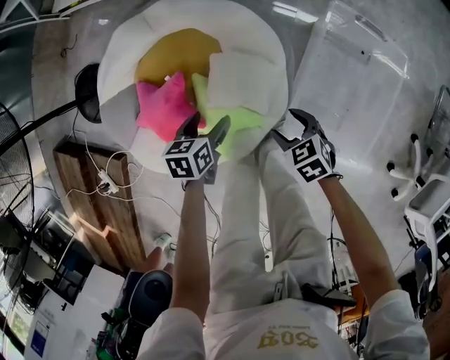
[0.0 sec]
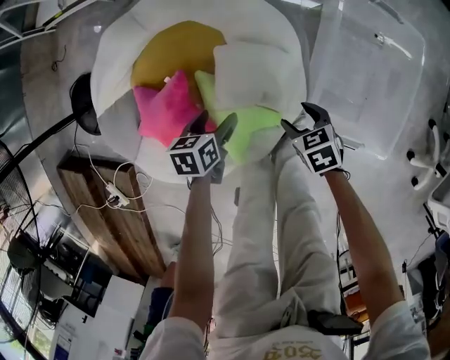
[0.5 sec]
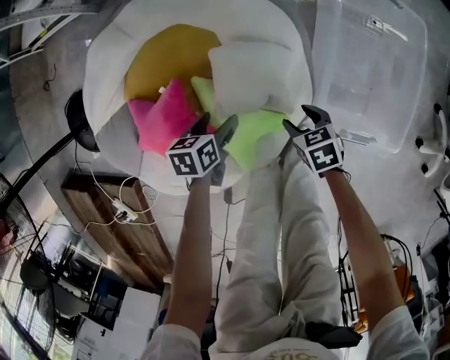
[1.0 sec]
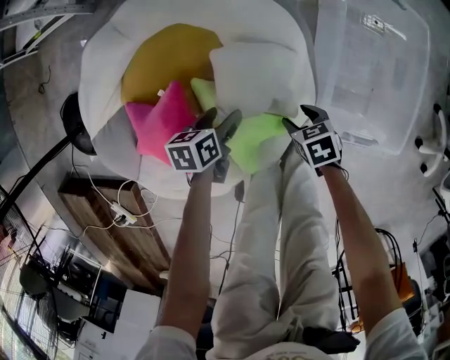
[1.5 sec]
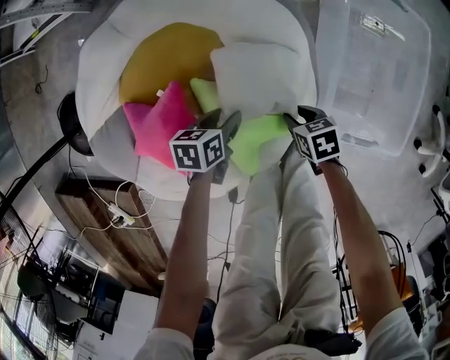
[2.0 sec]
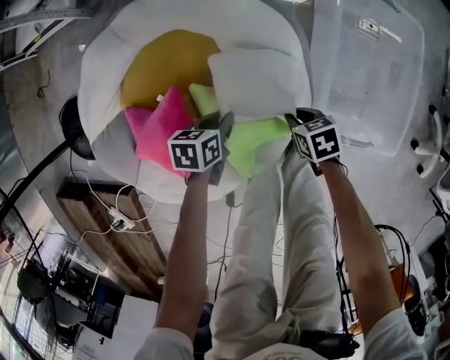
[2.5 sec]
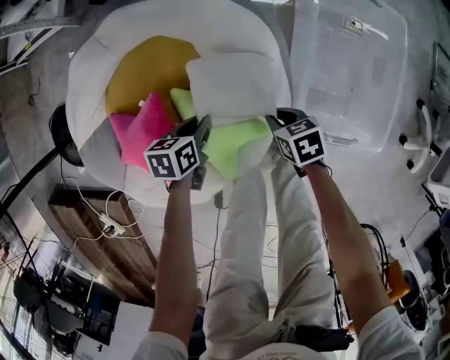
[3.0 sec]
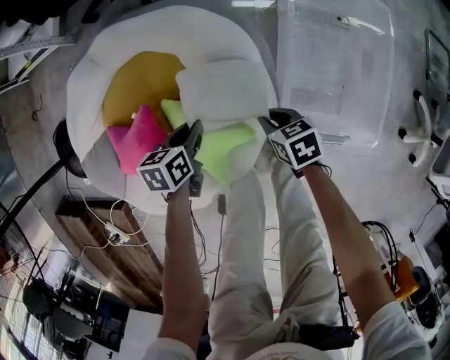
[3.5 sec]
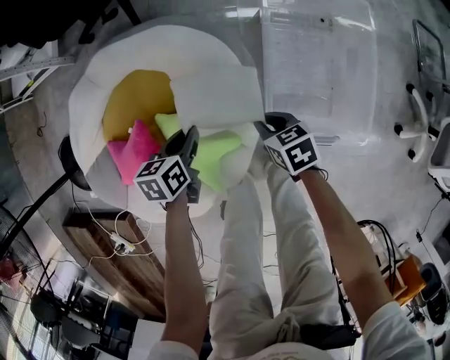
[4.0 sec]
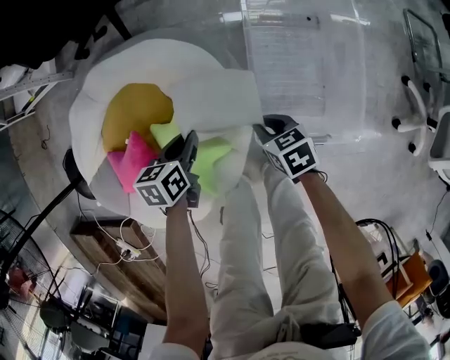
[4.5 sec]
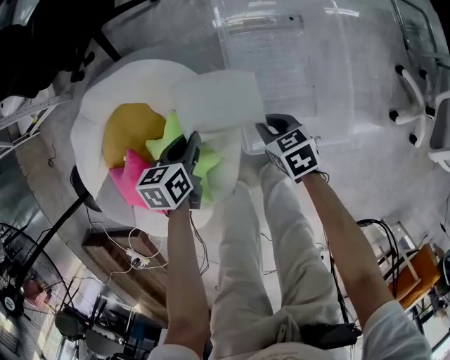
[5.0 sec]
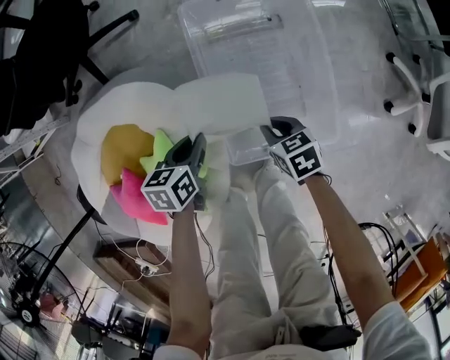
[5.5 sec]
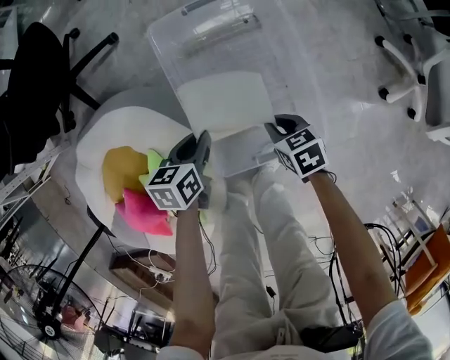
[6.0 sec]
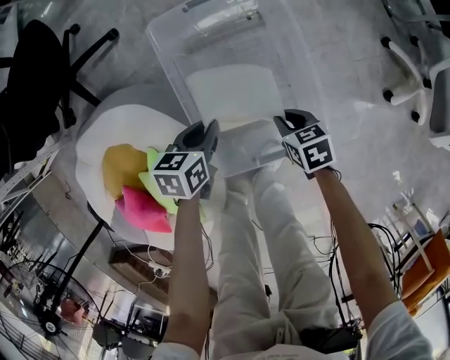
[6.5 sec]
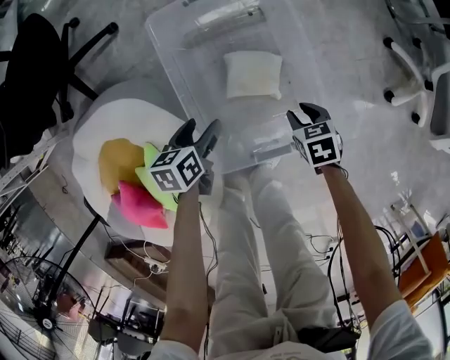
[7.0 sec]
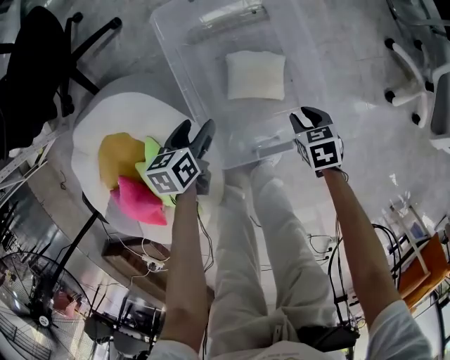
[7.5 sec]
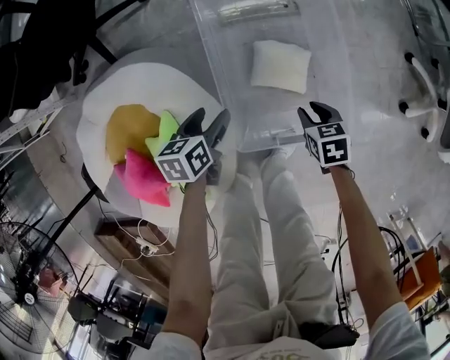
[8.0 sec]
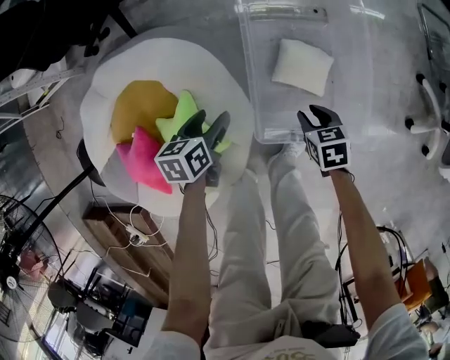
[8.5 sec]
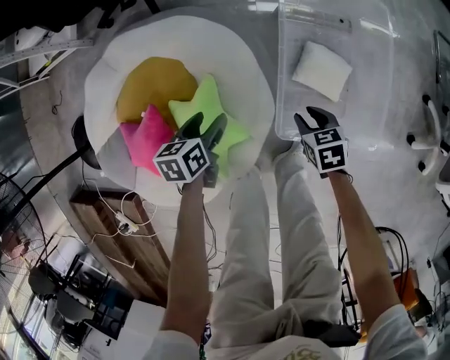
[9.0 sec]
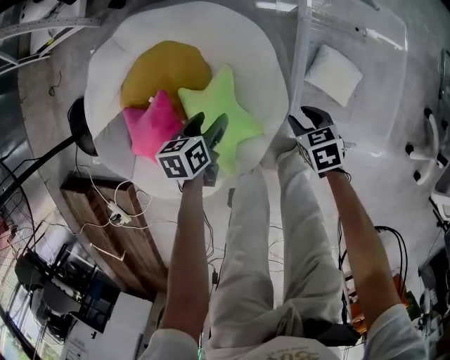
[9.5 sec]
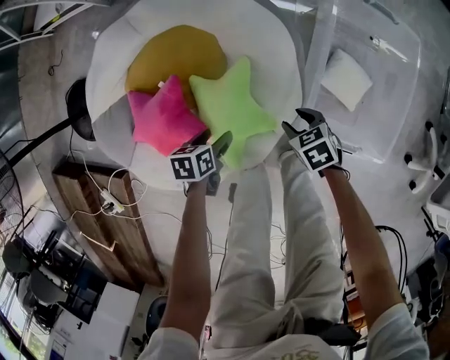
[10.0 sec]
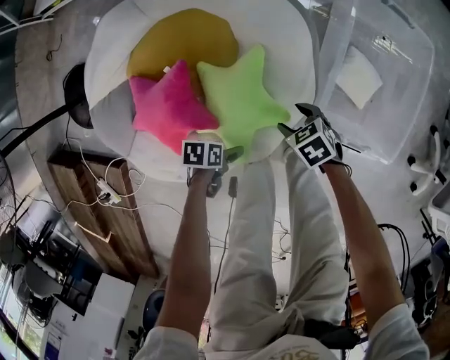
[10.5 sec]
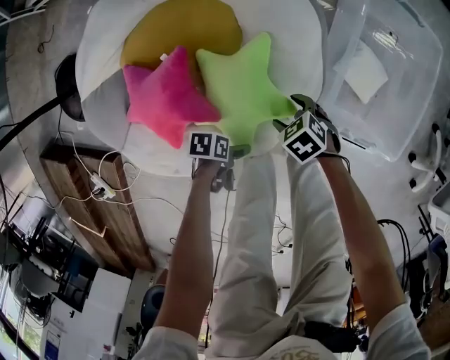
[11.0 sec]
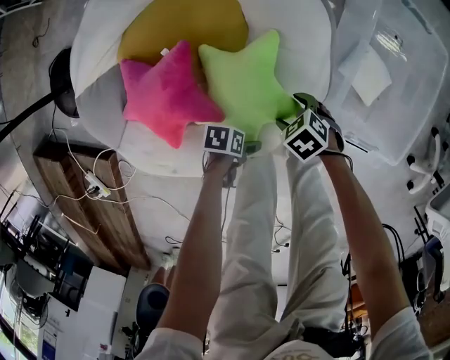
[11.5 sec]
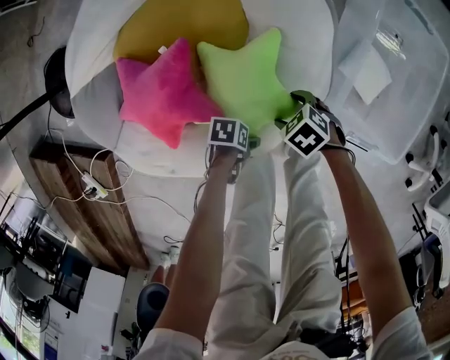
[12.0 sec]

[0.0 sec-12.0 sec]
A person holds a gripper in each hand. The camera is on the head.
0.0 sec to 2.0 sec: Both grippers travel together downward, roughly 20 cm. The right gripper rotates some 30 degrees, and closes up.
2.0 sec to 4.0 sec: The two grippers go some 10 cm upward.
4.0 sec to 6.0 sec: The grippers both shift to the right by about 30 cm. The left gripper rotates approximately 20 degrees.
6.0 sec to 8.0 sec: The left gripper is displaced to the left by some 5 cm, and opens its fingers. Meanwhile the right gripper reaches about 10 cm to the right, then returns.
8.0 sec to 10.0 sec: The left gripper is displaced to the left and backward by roughly 35 cm, and changes its angle by some 30 degrees, while the right gripper moves to the left, about 35 cm, and turns by about 40 degrees.
10.0 sec to 12.0 sec: The left gripper is displaced downward by some 15 cm, and changes its angle by about 30 degrees. Meanwhile the right gripper ends up some 15 cm from where it was, turns by about 30 degrees, and opens up.

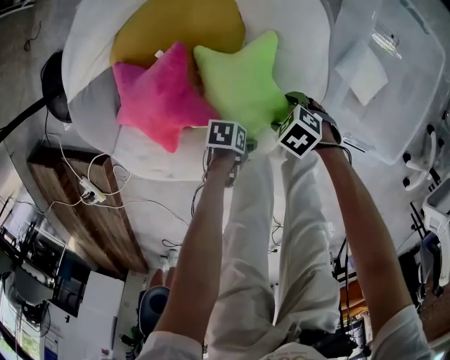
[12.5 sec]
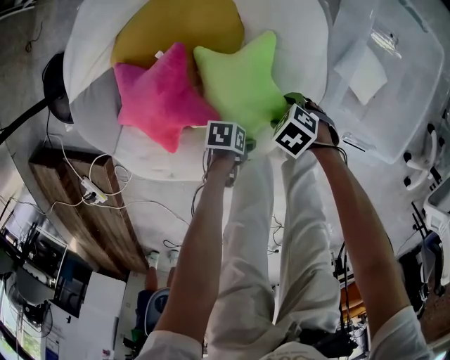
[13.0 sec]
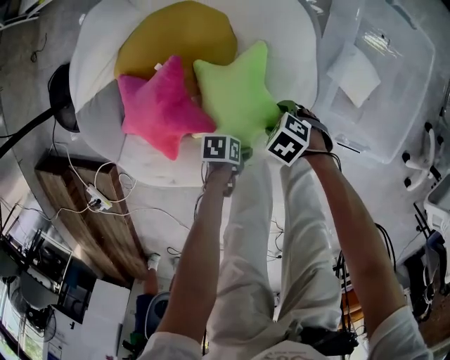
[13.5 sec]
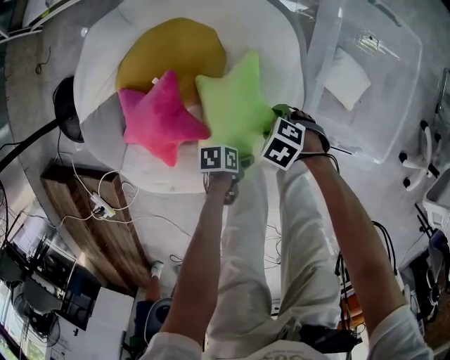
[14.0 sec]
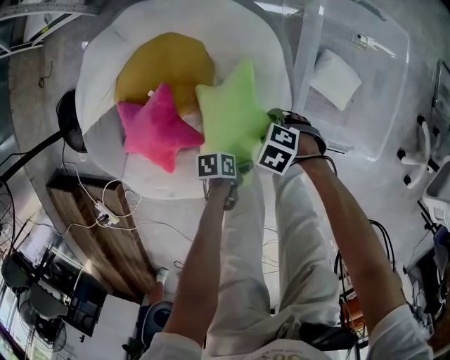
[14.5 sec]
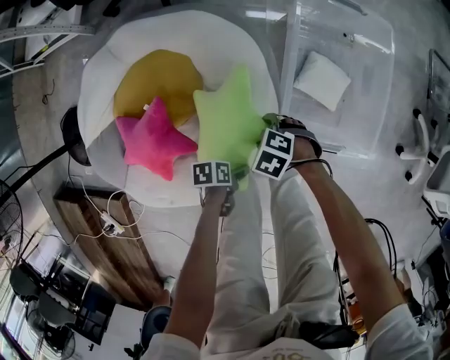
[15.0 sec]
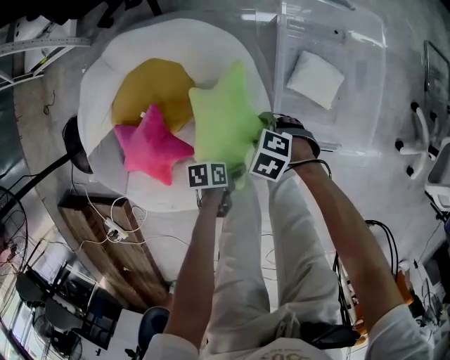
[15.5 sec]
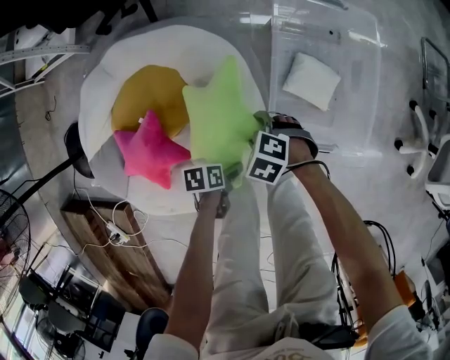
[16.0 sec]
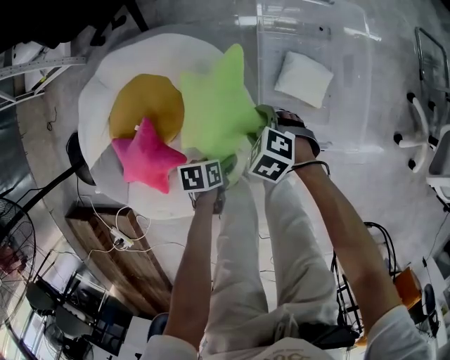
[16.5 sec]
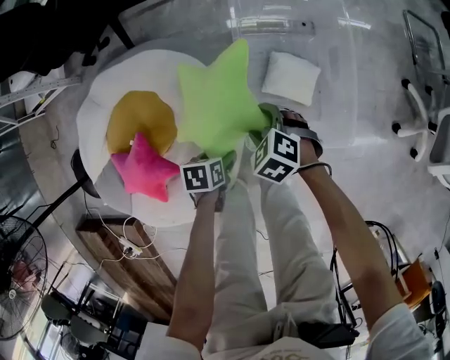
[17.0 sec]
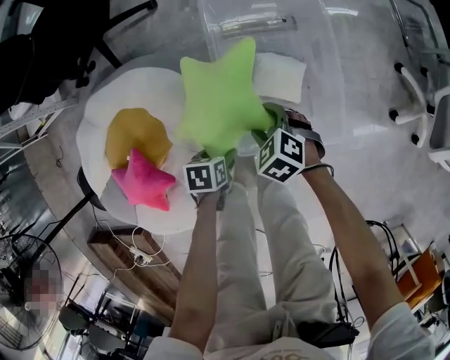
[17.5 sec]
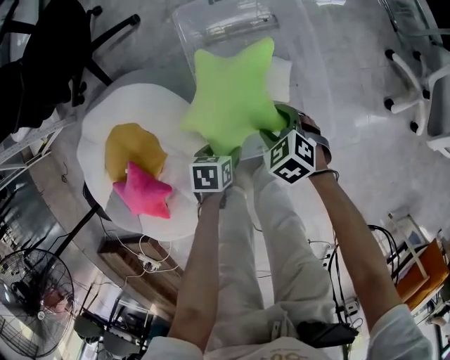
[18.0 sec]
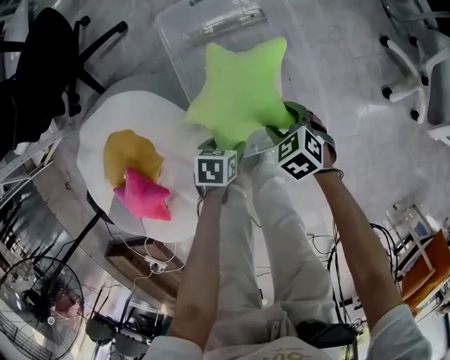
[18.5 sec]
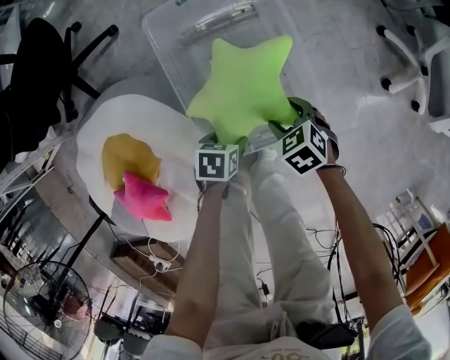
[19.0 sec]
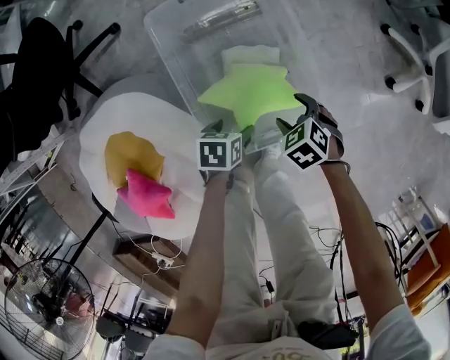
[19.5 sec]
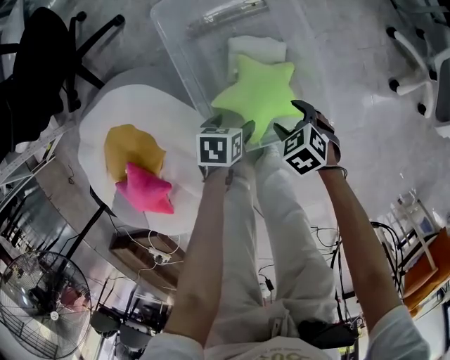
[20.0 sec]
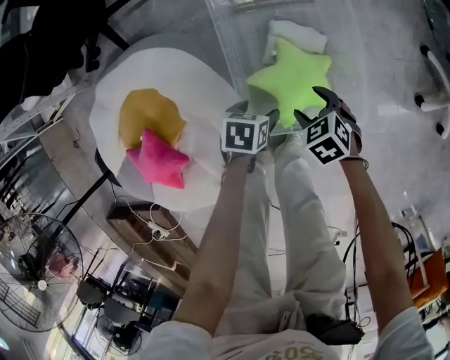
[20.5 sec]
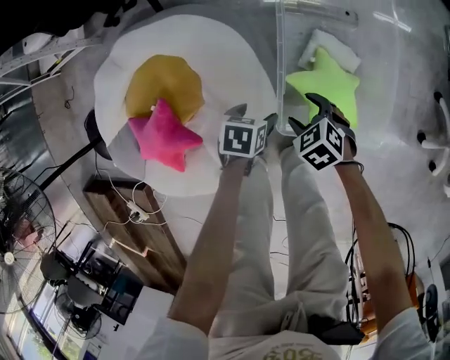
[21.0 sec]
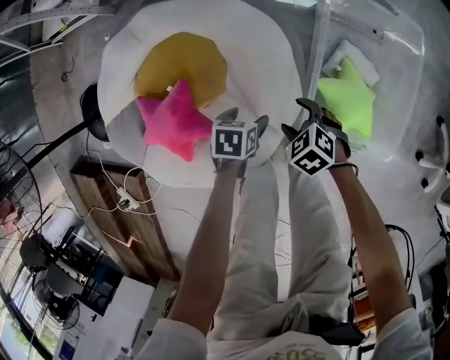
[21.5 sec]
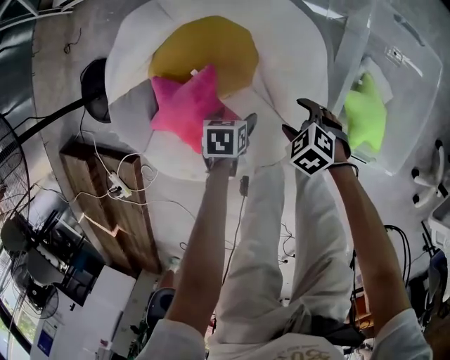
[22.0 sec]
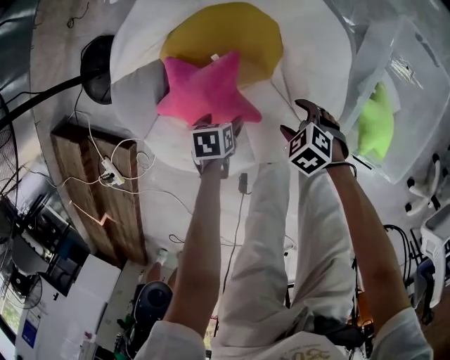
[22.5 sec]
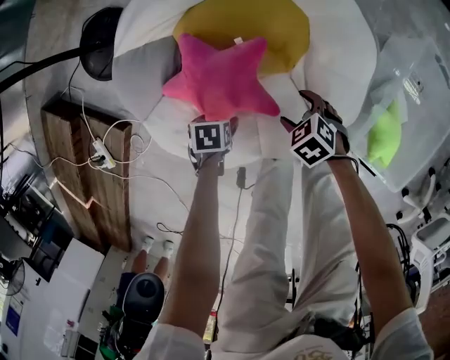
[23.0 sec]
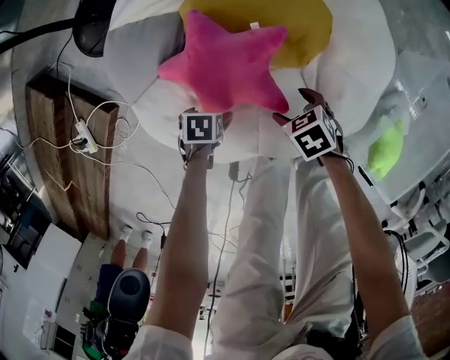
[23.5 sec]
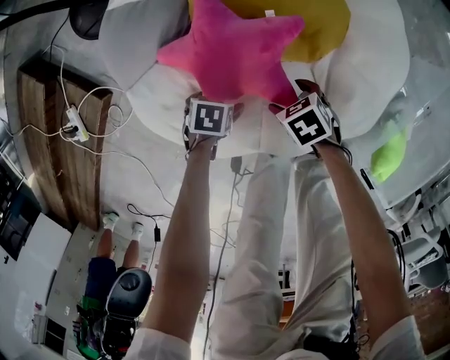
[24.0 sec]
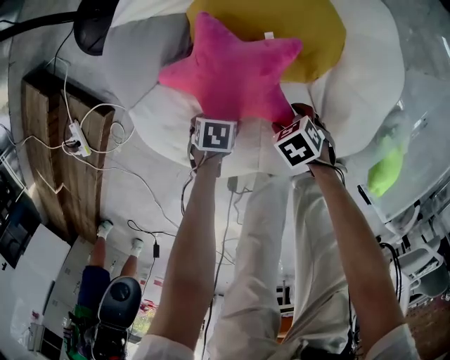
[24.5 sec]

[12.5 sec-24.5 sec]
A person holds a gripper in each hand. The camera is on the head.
12.5 sec to 14.5 sec: The grippers both shift upward by about 10 cm.
14.5 sec to 16.5 sec: The left gripper moves approximately 15 cm, and swivels some 20 degrees; the right gripper changes place by approximately 15 cm, and turns by about 20 degrees.
16.5 sec to 18.5 sec: The right gripper moves approximately 30 cm, and swivels approximately 40 degrees; the left gripper changes place by approximately 25 cm, and turns by some 30 degrees.
18.5 sec to 20.5 sec: The right gripper moves approximately 5 cm.
20.5 sec to 22.5 sec: The pair of grippers is taken roughly 50 cm. The right gripper swivels roughly 40 degrees, while the left gripper twists some 40 degrees counterclockwise, seen from behind.
22.5 sec to 24.5 sec: The two grippers go some 15 cm downward.

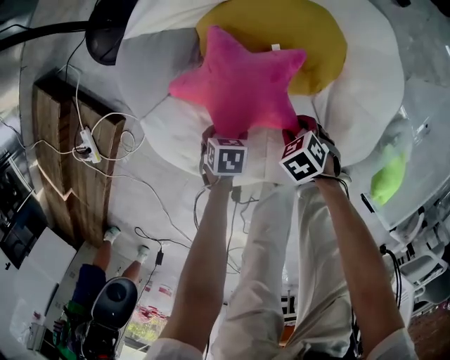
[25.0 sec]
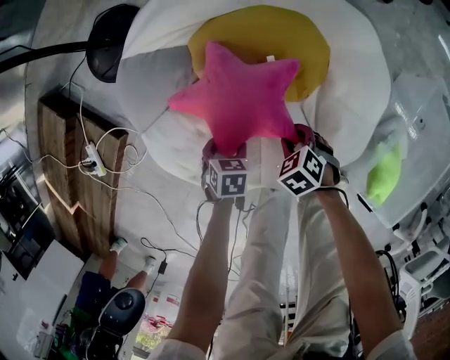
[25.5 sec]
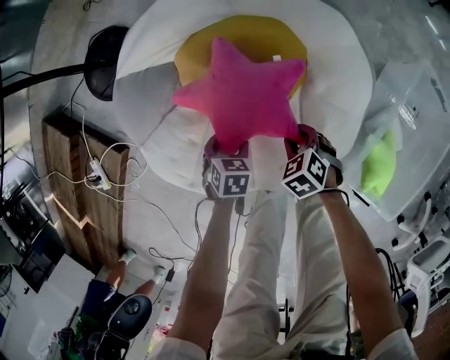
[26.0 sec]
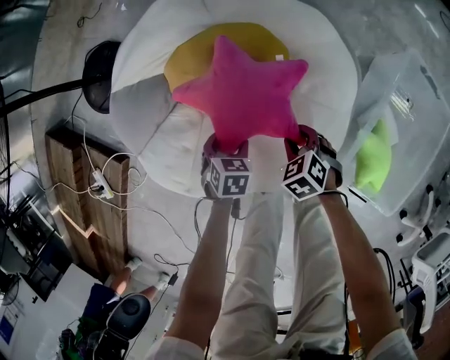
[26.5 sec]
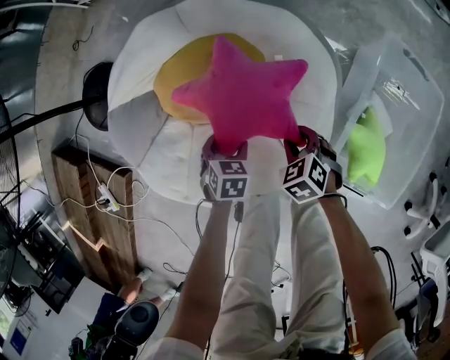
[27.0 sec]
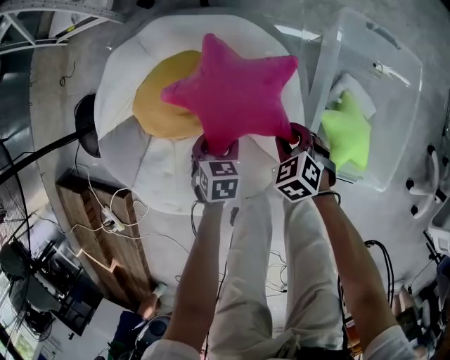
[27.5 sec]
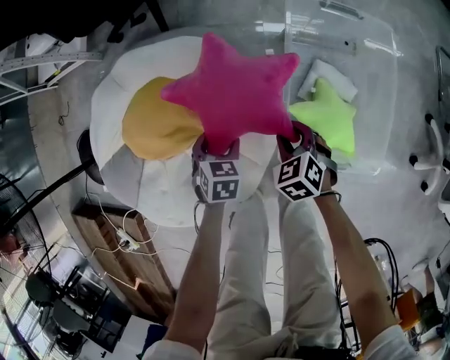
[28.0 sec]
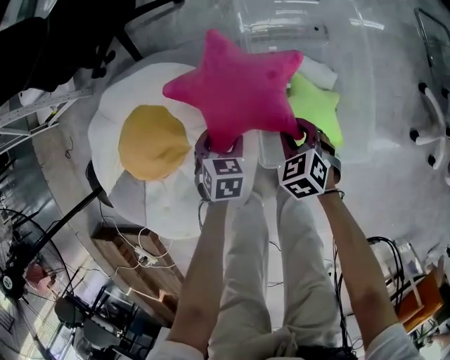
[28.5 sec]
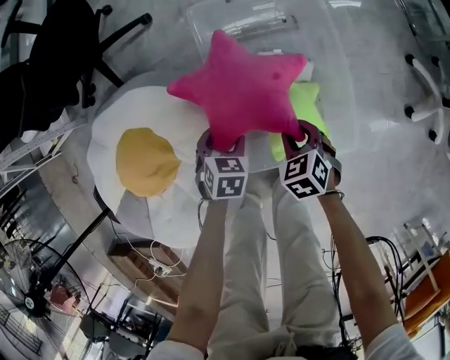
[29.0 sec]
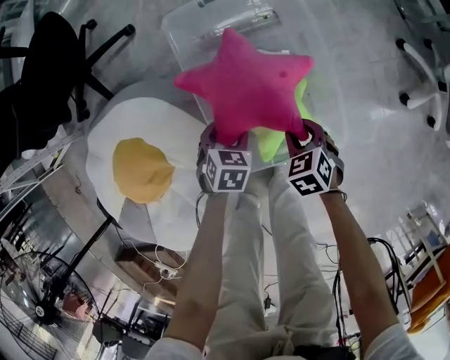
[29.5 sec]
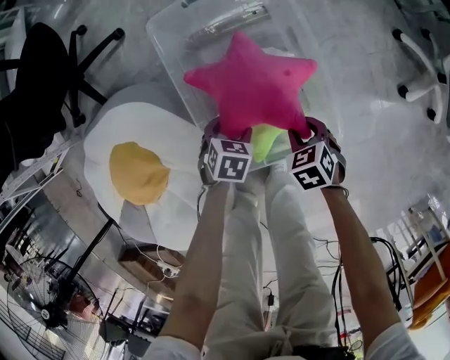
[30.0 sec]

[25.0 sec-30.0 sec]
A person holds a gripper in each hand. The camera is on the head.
25.0 sec to 27.5 sec: The left gripper moves approximately 30 cm, and turns by roughly 40 degrees; the right gripper ends up approximately 30 cm from where it was, and swivels about 30 degrees.
27.5 sec to 30.0 sec: The two grippers travel together, approximately 40 cm. The right gripper rolls clockwise, seen from behind, by about 40 degrees; the left gripper swivels roughly 40 degrees.
